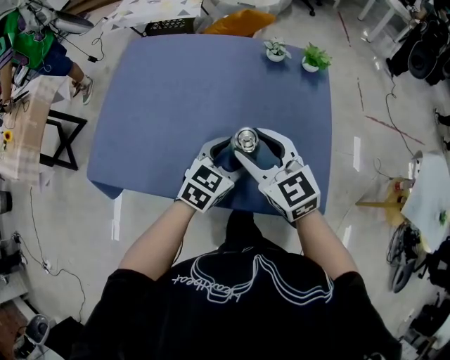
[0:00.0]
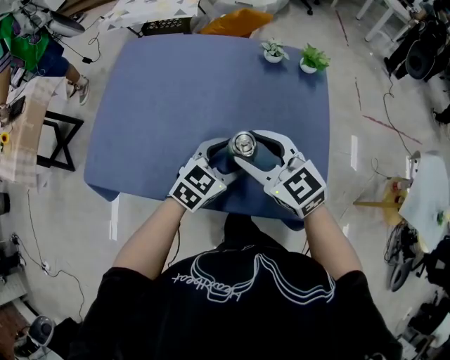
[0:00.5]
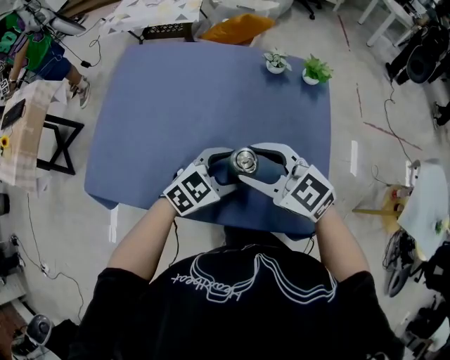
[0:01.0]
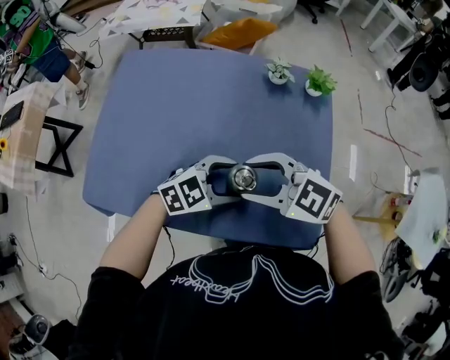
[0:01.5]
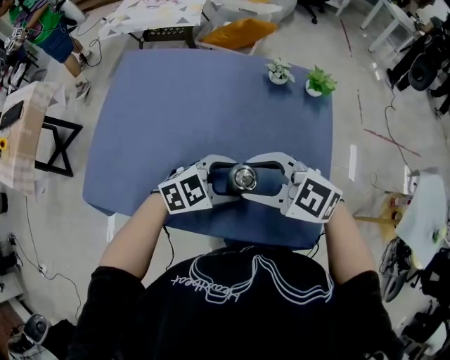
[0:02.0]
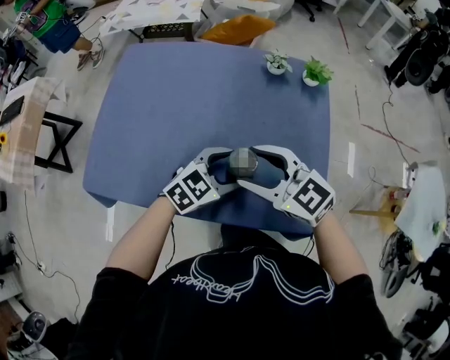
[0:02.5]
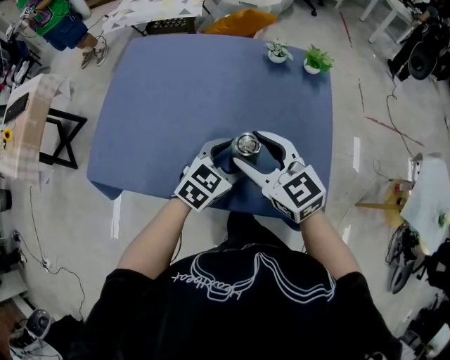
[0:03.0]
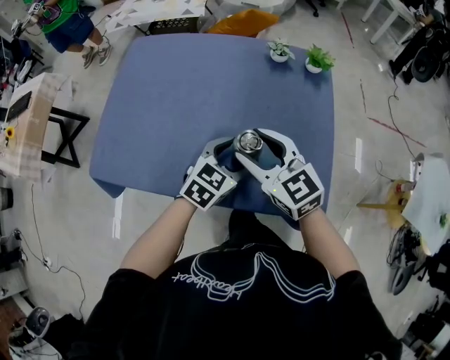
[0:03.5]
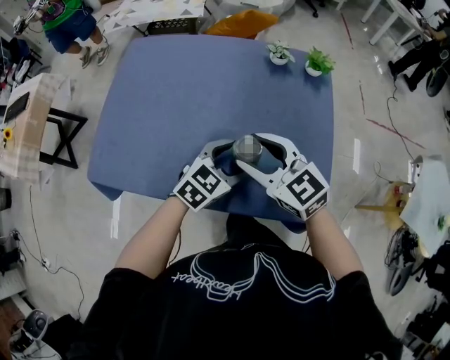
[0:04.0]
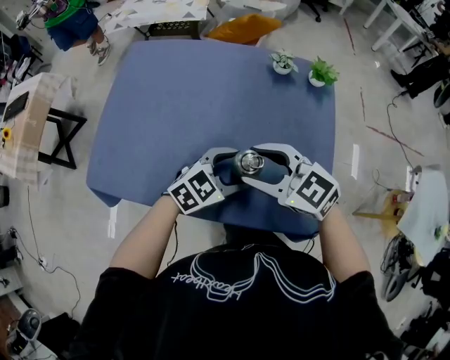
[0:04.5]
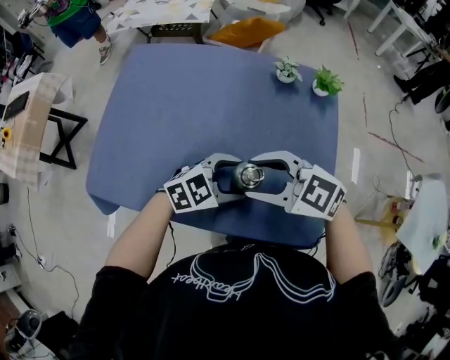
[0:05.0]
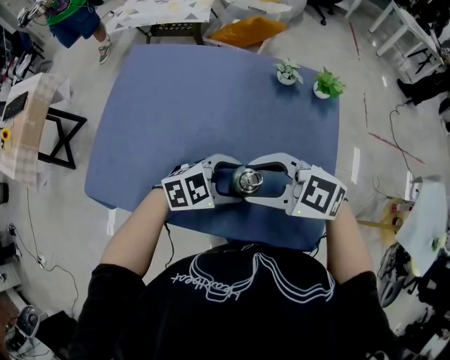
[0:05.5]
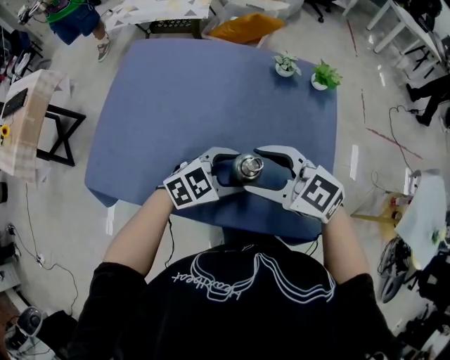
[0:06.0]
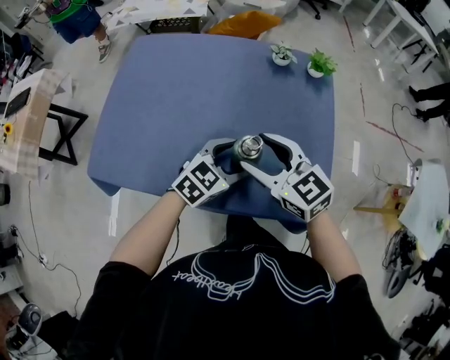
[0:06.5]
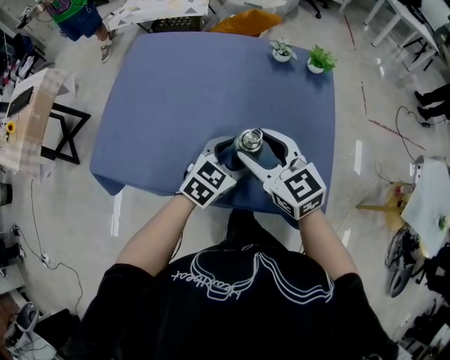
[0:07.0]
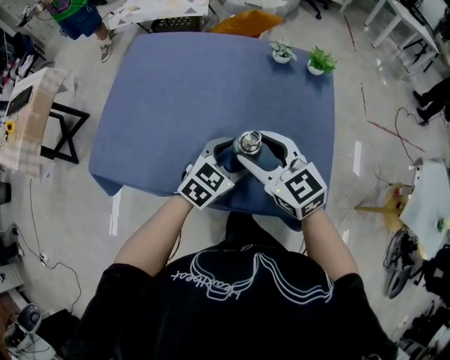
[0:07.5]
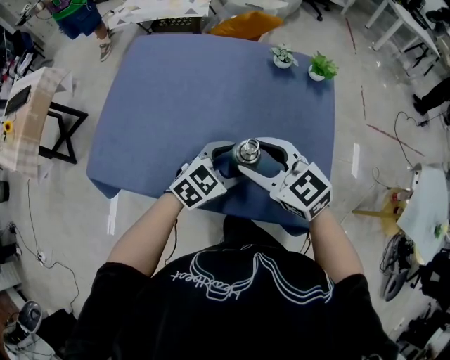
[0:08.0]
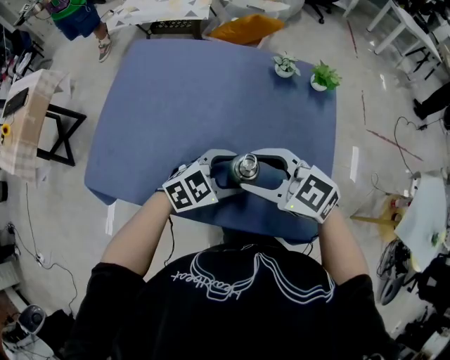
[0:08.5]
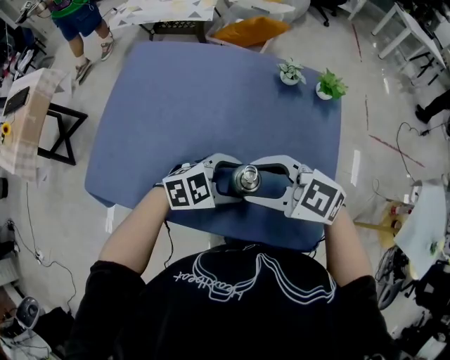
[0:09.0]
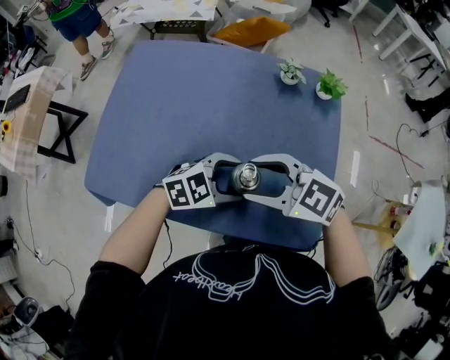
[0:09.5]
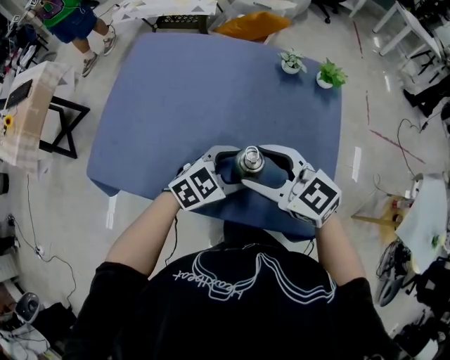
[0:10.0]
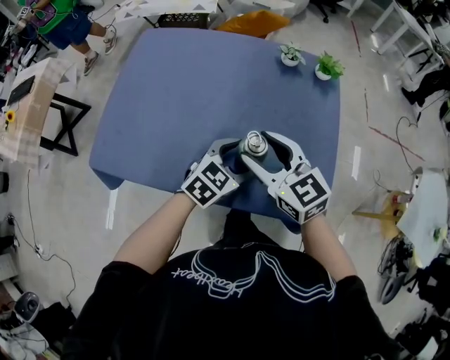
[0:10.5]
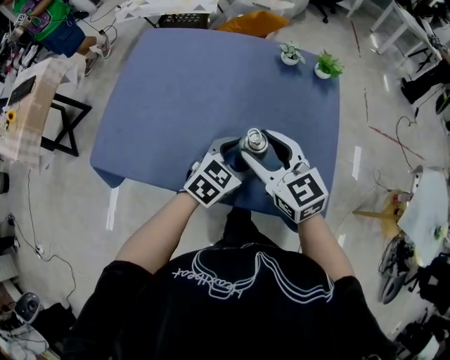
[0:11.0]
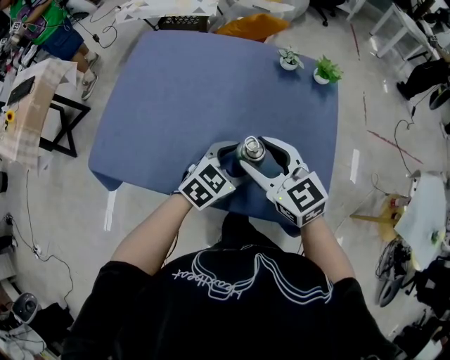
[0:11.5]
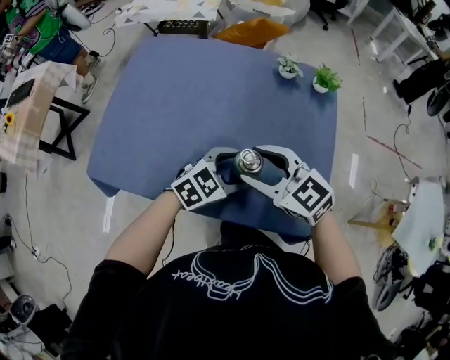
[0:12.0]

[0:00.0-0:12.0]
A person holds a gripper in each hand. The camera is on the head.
0:00.0 to 0:02.0: The left gripper rotates approximately 30 degrees. Meanwhile the right gripper turns by about 40 degrees.
0:02.0 to 0:04.0: The right gripper changes its angle by about 30 degrees; the left gripper changes its angle by roughly 20 degrees.

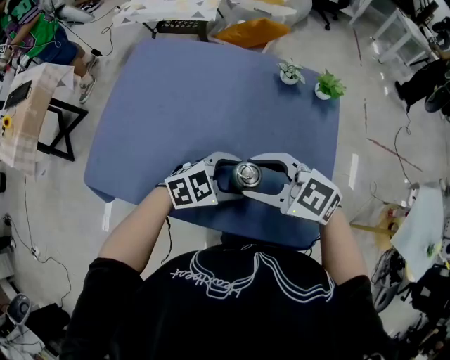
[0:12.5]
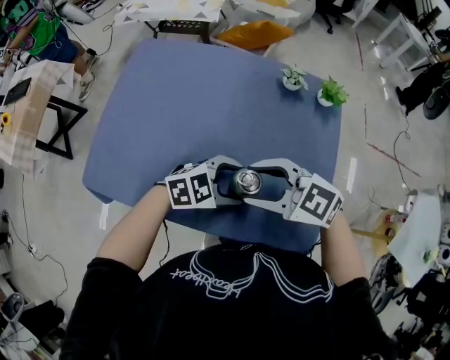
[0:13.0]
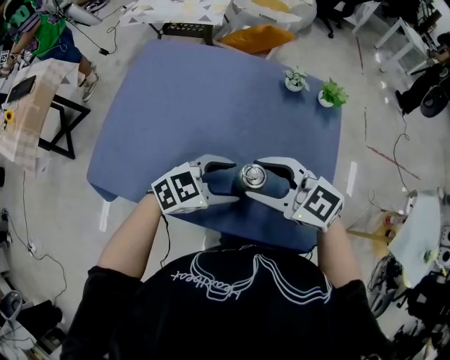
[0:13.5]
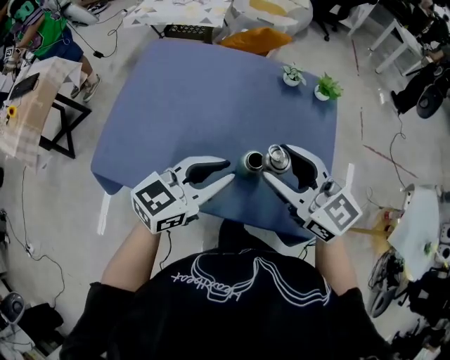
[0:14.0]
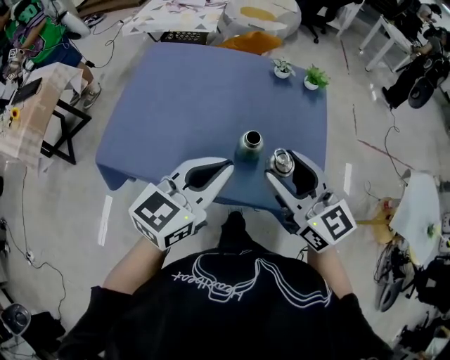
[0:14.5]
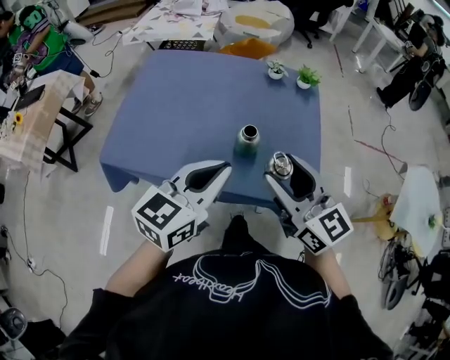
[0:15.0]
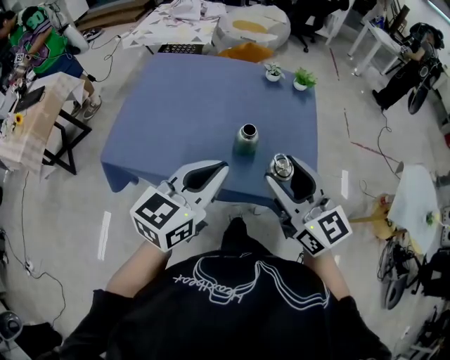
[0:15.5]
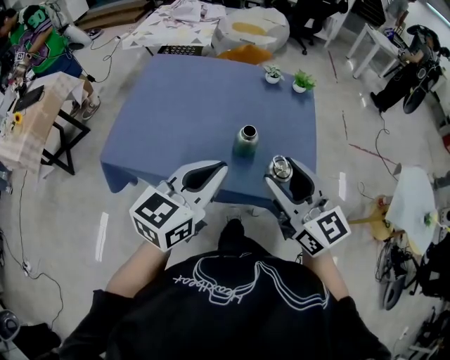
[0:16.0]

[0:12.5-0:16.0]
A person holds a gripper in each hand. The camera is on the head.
0:12.5 to 0:14.5: The right gripper is displaced upward by some 10 cm, and turns by about 50 degrees. The left gripper travels upward by approximately 20 cm, rotates roughly 50 degrees, and closes.
0:14.5 to 0:16.0: The right gripper goes some 5 cm backward; the left gripper ends up about 5 cm from where it was.

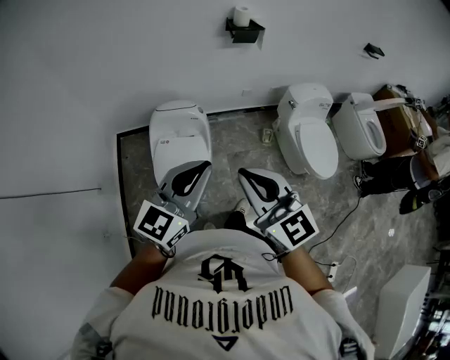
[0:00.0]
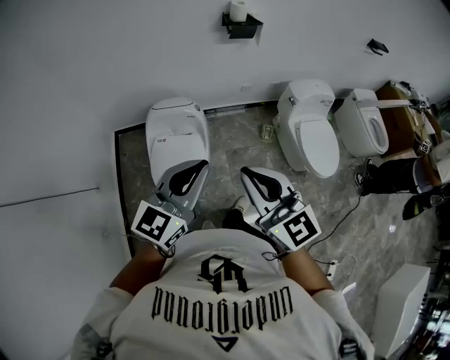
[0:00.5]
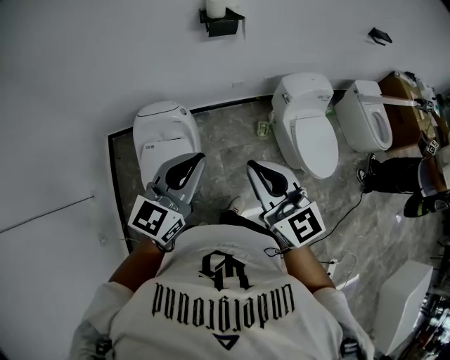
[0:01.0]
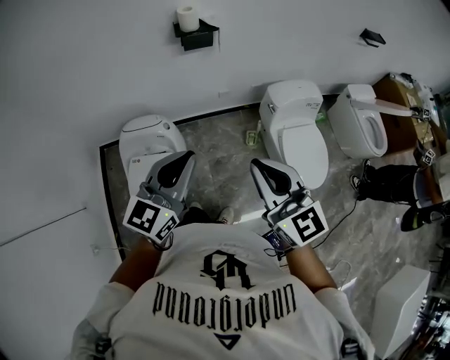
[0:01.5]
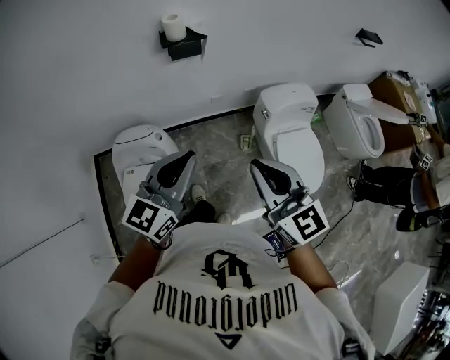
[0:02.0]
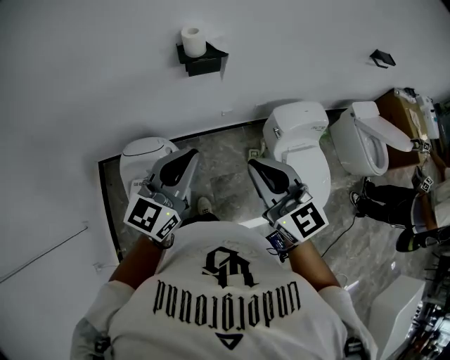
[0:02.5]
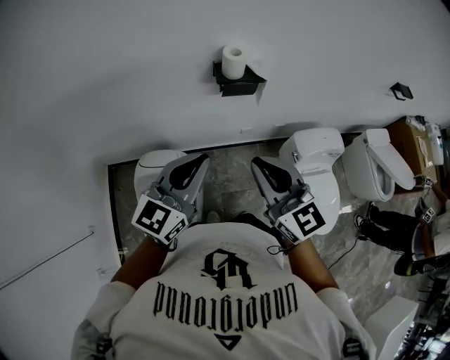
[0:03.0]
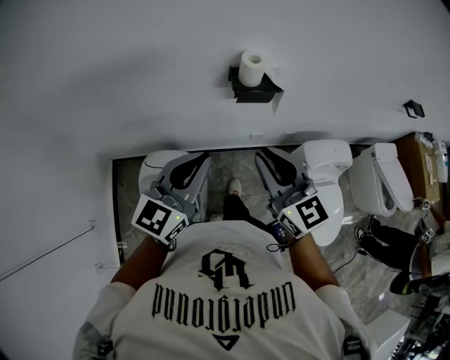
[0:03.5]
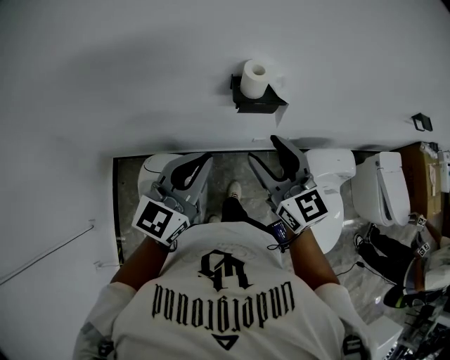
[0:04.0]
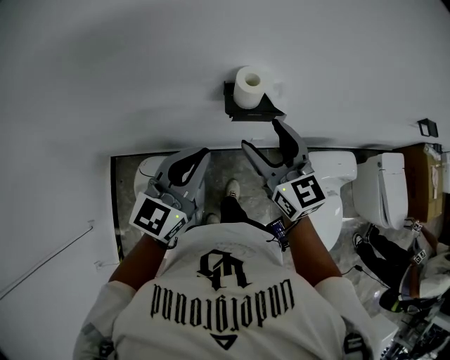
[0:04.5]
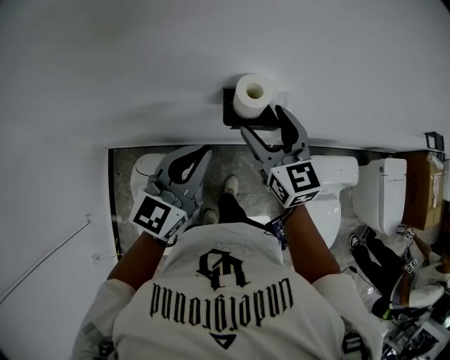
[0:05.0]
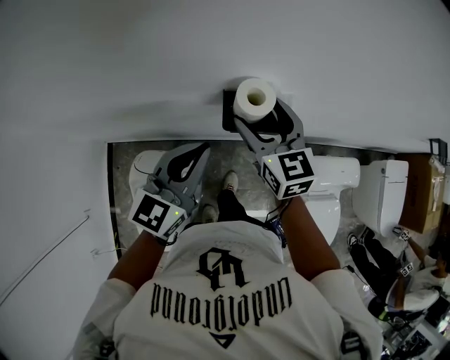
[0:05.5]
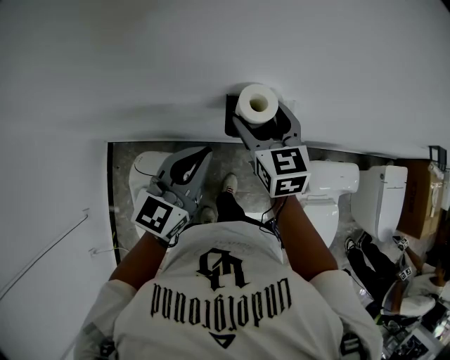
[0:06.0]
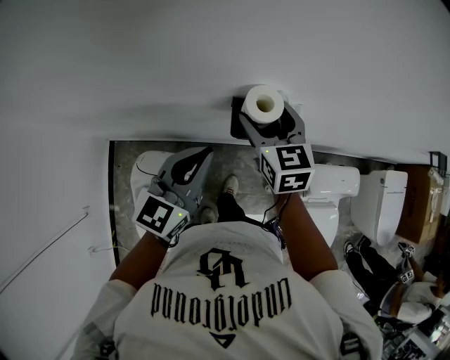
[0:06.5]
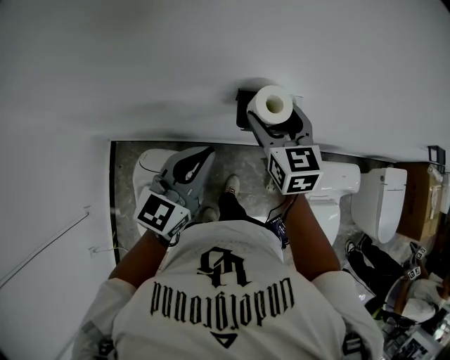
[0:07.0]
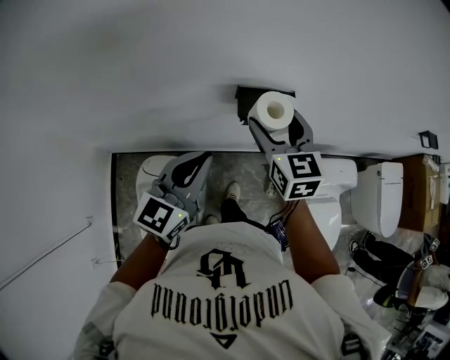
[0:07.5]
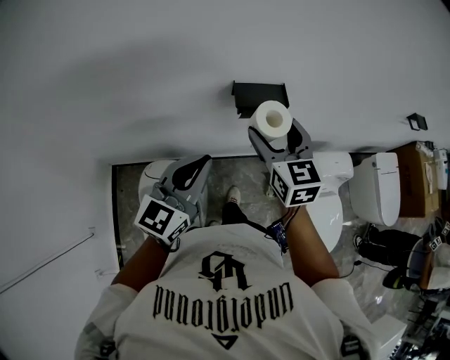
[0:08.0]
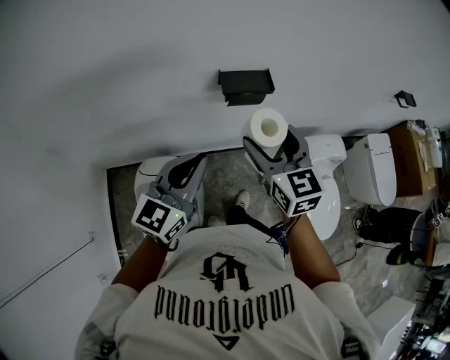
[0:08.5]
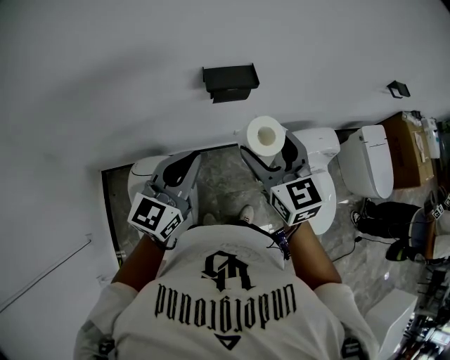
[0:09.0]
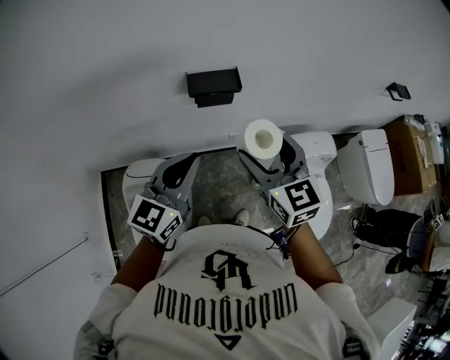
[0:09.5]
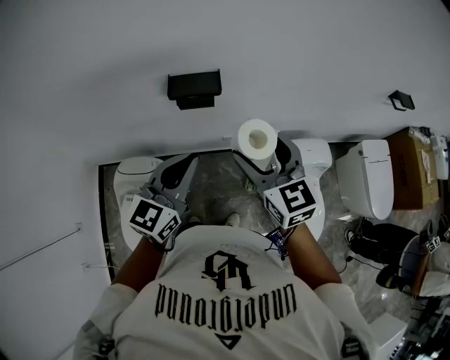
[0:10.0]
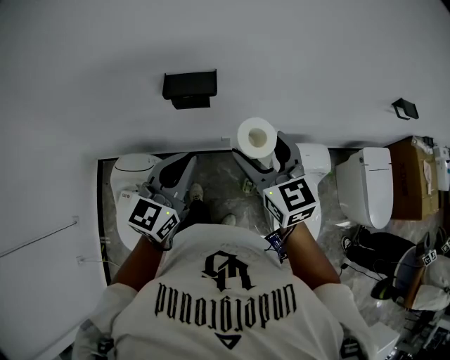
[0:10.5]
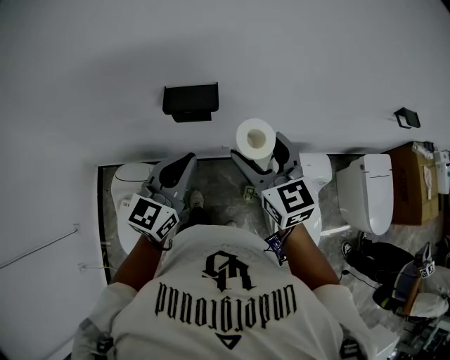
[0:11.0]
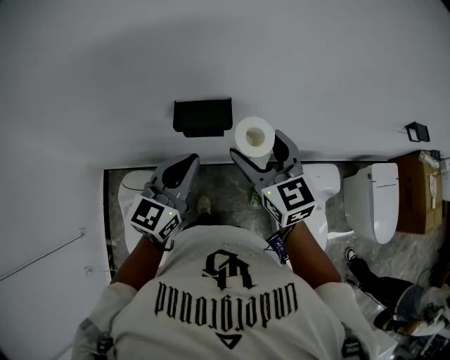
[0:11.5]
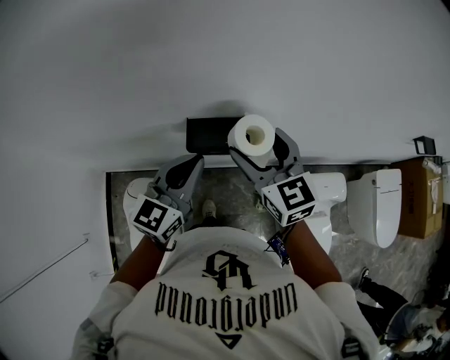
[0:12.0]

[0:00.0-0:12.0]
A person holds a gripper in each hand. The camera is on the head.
0:00.0 to 0:02.0: The left gripper heads forward and to the right, covering some 35 cm, while the right gripper heads to the right and forward, covering roughly 40 cm.
0:02.0 to 0:04.0: The grippers both shift forward and to the left by about 35 cm. The right gripper opens.
0:04.0 to 0:06.0: The grippers both shift forward by about 20 cm.
0:06.0 to 0:08.0: The left gripper goes approximately 15 cm backward. Meanwhile the right gripper travels backward and upward by roughly 20 cm.
0:08.0 to 0:10.0: The grippers both shift to the right by about 20 cm.
0:10.0 to 0:12.0: The two grippers go approximately 20 cm forward.
